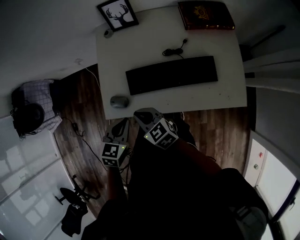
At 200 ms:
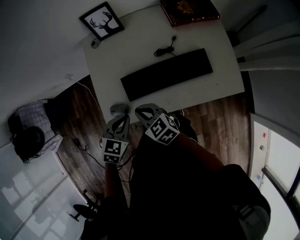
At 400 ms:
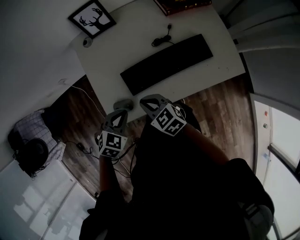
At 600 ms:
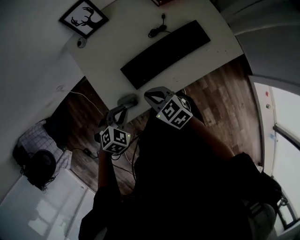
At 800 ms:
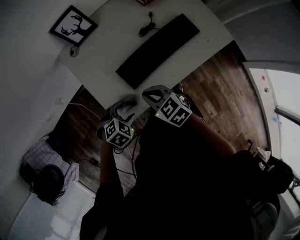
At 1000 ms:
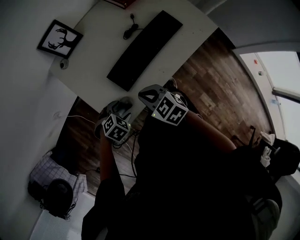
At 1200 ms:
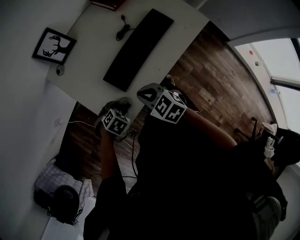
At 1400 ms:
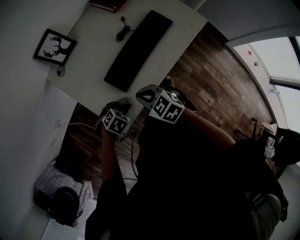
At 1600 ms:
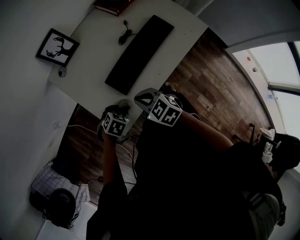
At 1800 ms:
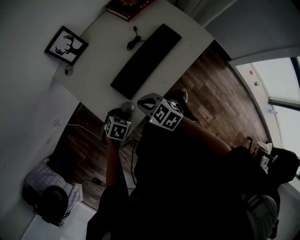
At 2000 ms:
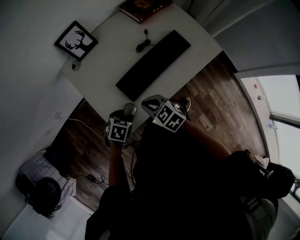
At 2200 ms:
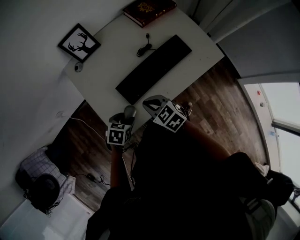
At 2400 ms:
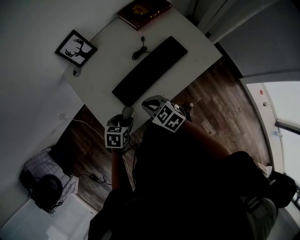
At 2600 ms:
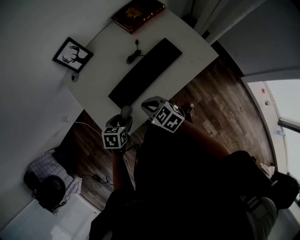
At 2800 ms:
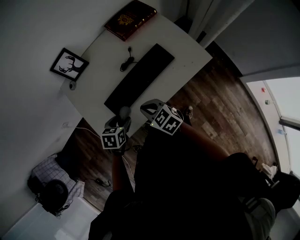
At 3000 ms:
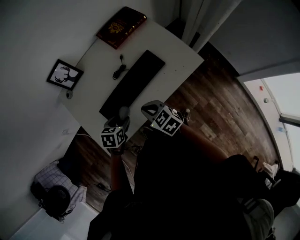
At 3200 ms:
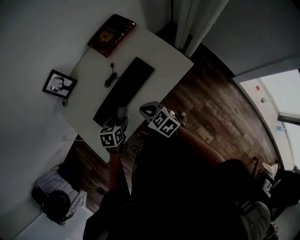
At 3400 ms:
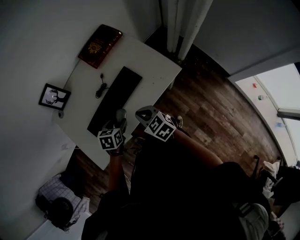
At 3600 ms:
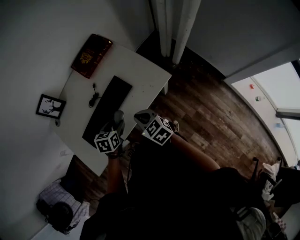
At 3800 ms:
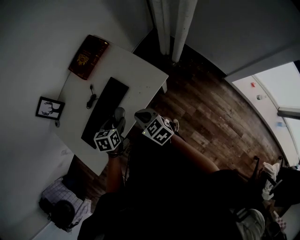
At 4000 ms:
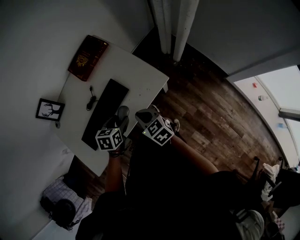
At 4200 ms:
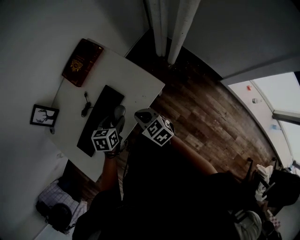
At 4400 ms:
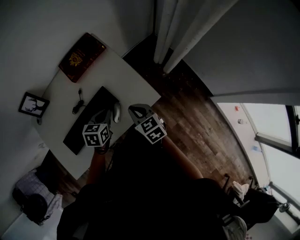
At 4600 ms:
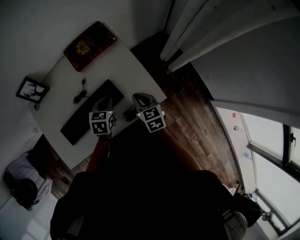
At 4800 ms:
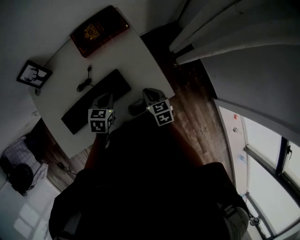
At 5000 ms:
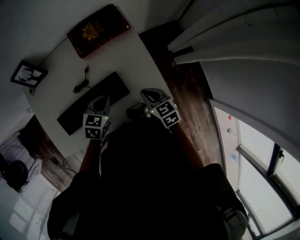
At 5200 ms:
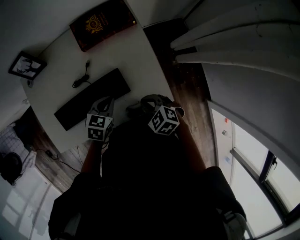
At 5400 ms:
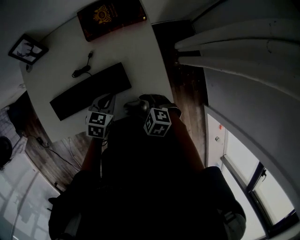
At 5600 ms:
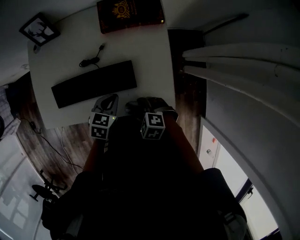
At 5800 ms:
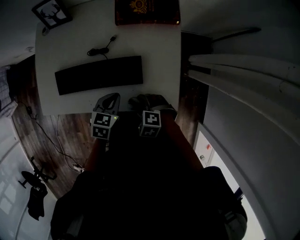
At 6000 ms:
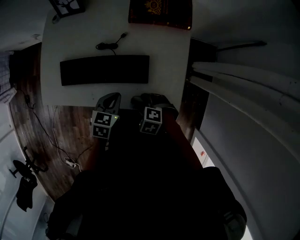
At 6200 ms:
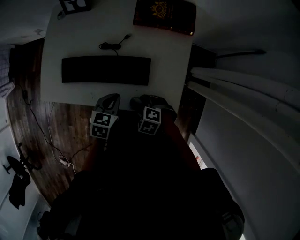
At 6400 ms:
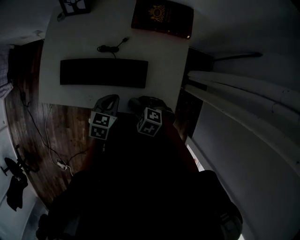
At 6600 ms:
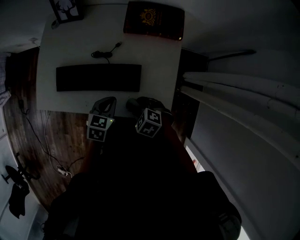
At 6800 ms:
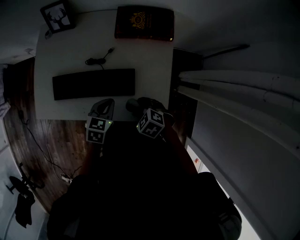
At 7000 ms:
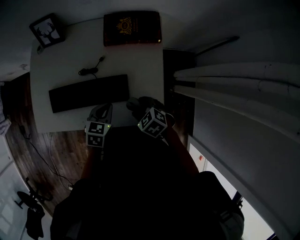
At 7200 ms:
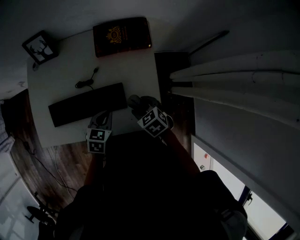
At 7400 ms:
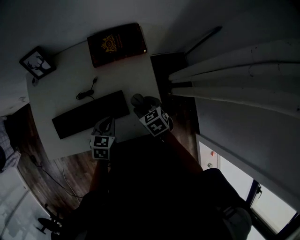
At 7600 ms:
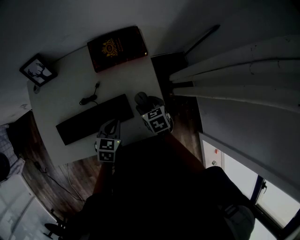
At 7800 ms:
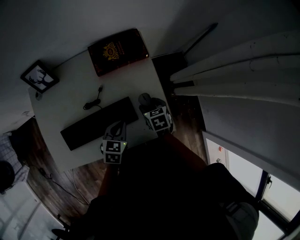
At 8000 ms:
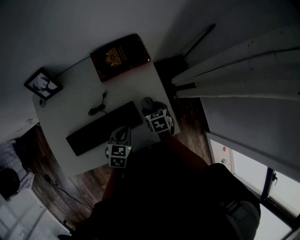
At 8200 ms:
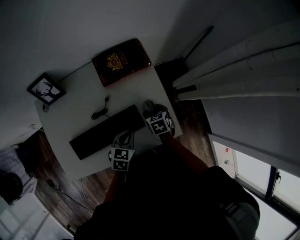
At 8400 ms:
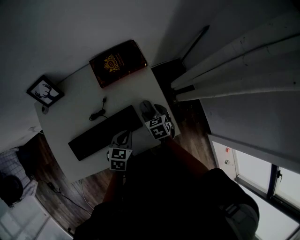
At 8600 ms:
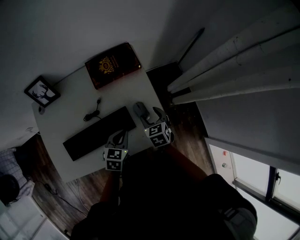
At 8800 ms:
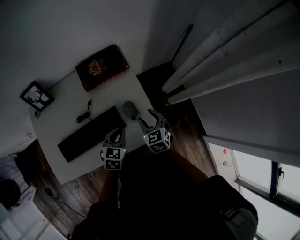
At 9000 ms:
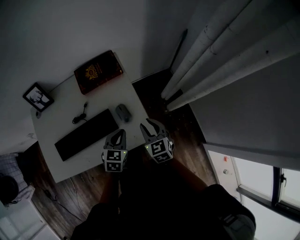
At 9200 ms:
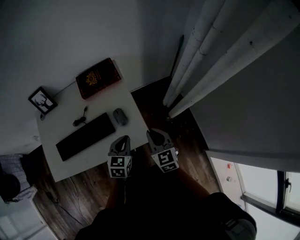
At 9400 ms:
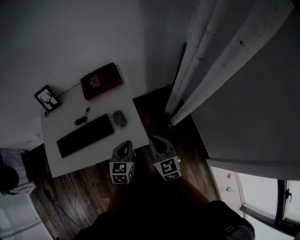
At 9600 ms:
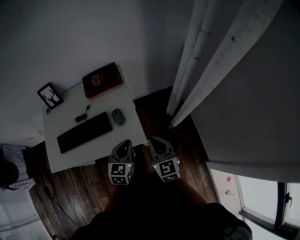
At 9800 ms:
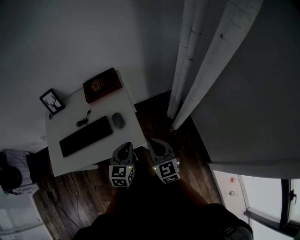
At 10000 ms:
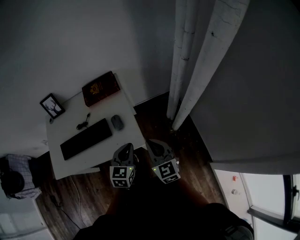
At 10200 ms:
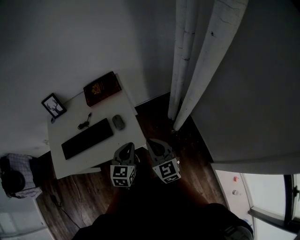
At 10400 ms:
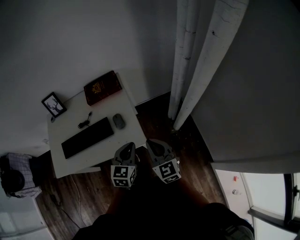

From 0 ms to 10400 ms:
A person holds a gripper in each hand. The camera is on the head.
From 0 ms to 1400 ms: The right gripper swivels about 40 degrees, while the left gripper goes approximately 15 cm downward, points its fingers approximately 30 degrees further downward, and opens.
From 1400 ms to 3000 ms: The left gripper changes place by about 20 cm, and rotates around the line of its fingers by about 40 degrees, counterclockwise from behind. Meanwhile the right gripper shifts by approximately 15 cm.
From 3000 ms to 4400 ms: The grippers both shift to the right and forward by approximately 30 cm. The left gripper closes.
From 4400 ms to 6000 ms: The left gripper moves approximately 10 cm, and swivels approximately 30 degrees. The right gripper travels downward by roughly 10 cm, tips its fingers downward by about 40 degrees, and opens.
From 6000 ms to 7400 ms: The left gripper changes place by some 10 cm, while the right gripper shifts by roughly 20 cm, and rotates around the line of its fingers by approximately 50 degrees, clockwise from behind.
From 7400 ms to 9000 ms: The right gripper heads to the right, upward and backward, covering about 15 cm, rotates roughly 30 degrees, and closes; the left gripper travels to the right by roughly 10 cm.
From 9000 ms to 10400 ms: The right gripper shifts roughly 15 cm backward, upward and to the right, swivels some 20 degrees, and closes up; the left gripper shifts about 15 cm to the right, backward and upward.

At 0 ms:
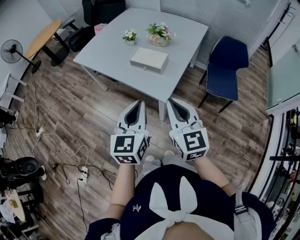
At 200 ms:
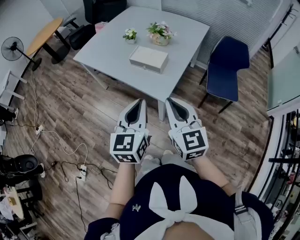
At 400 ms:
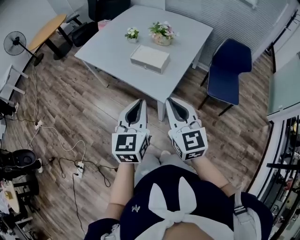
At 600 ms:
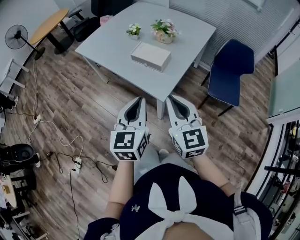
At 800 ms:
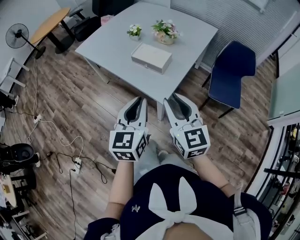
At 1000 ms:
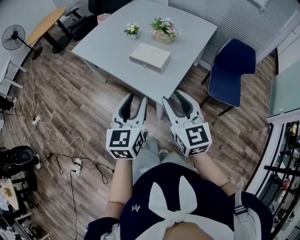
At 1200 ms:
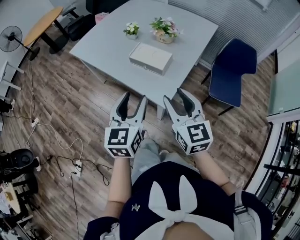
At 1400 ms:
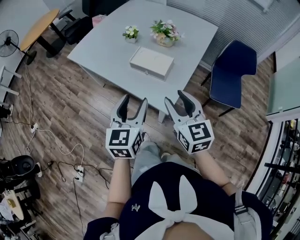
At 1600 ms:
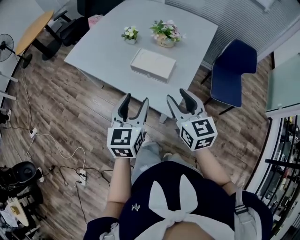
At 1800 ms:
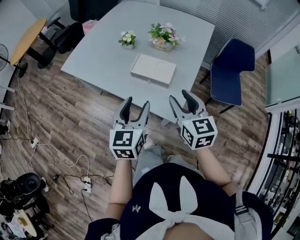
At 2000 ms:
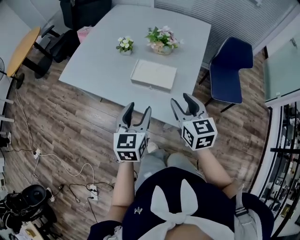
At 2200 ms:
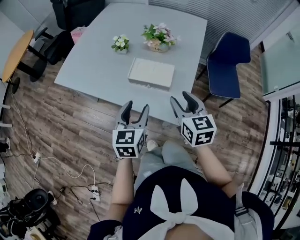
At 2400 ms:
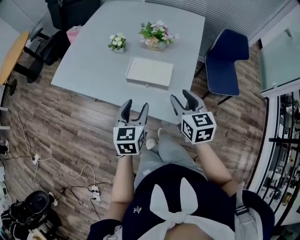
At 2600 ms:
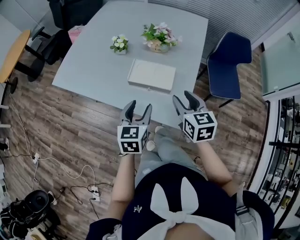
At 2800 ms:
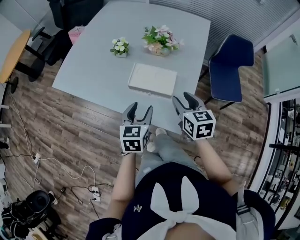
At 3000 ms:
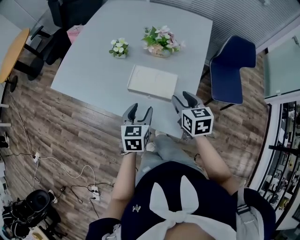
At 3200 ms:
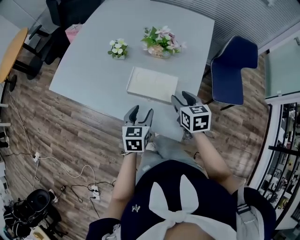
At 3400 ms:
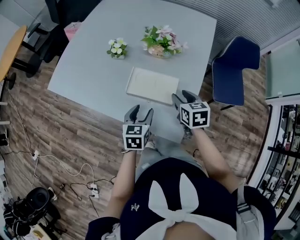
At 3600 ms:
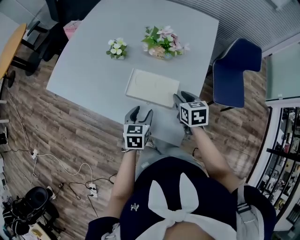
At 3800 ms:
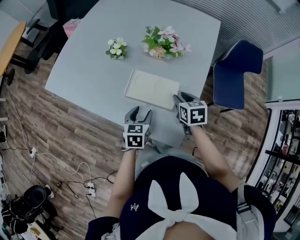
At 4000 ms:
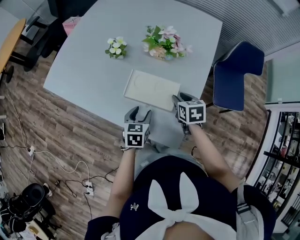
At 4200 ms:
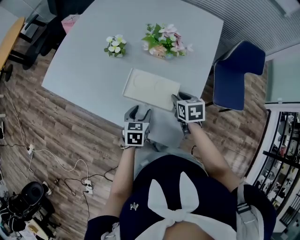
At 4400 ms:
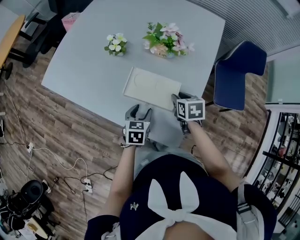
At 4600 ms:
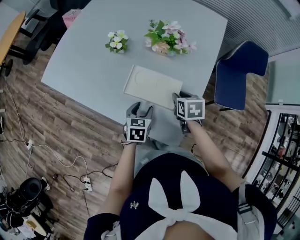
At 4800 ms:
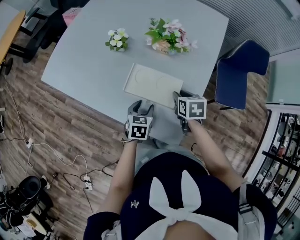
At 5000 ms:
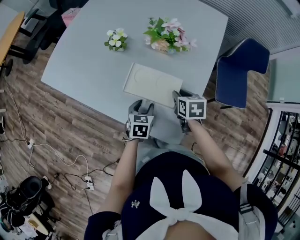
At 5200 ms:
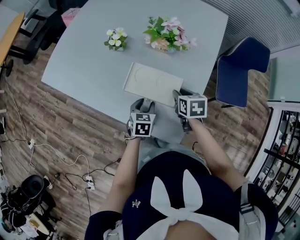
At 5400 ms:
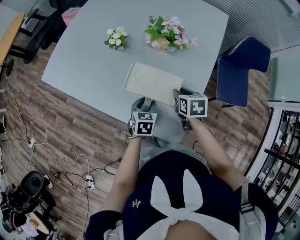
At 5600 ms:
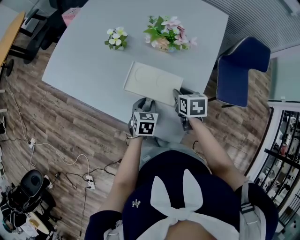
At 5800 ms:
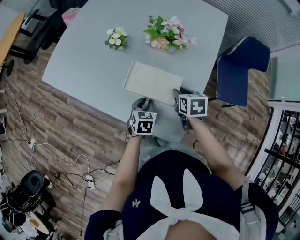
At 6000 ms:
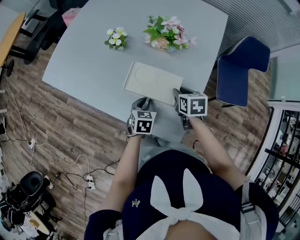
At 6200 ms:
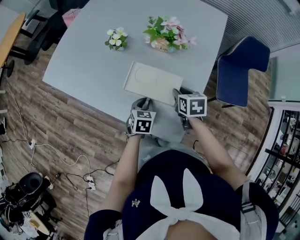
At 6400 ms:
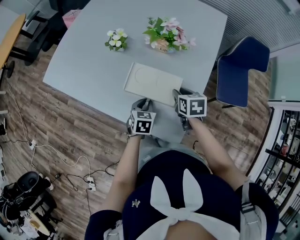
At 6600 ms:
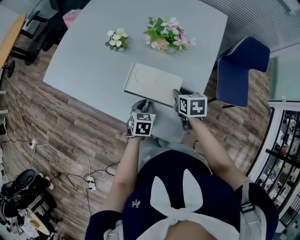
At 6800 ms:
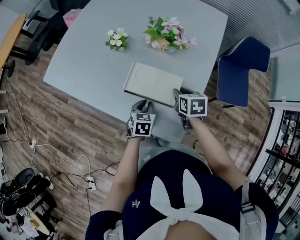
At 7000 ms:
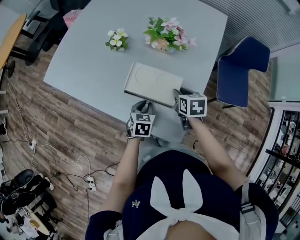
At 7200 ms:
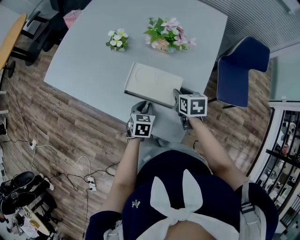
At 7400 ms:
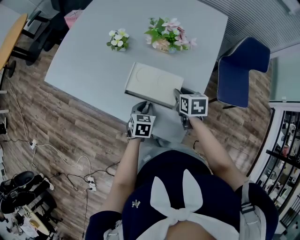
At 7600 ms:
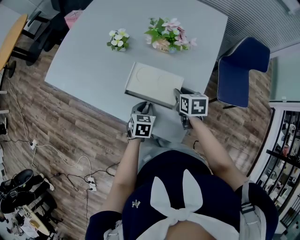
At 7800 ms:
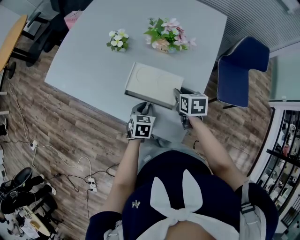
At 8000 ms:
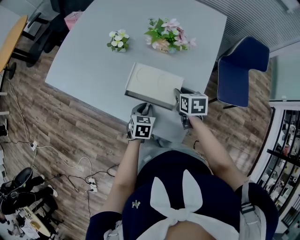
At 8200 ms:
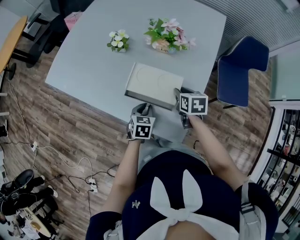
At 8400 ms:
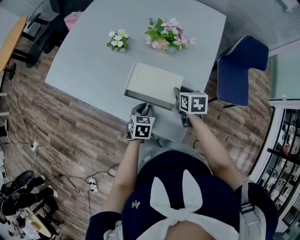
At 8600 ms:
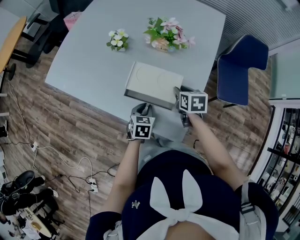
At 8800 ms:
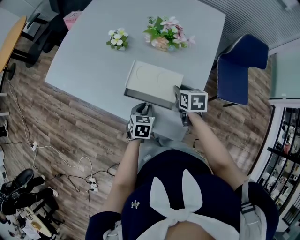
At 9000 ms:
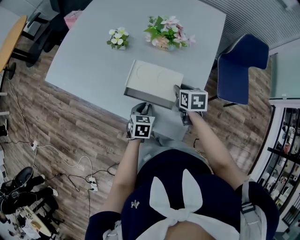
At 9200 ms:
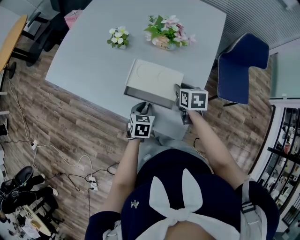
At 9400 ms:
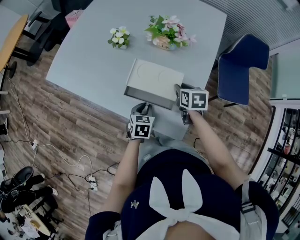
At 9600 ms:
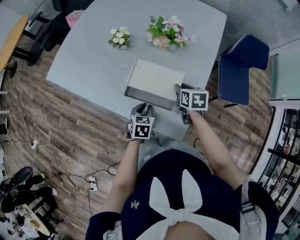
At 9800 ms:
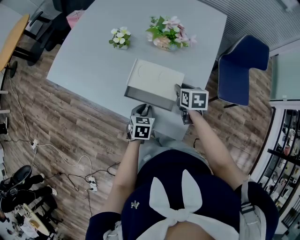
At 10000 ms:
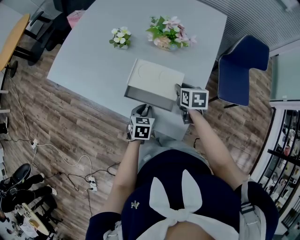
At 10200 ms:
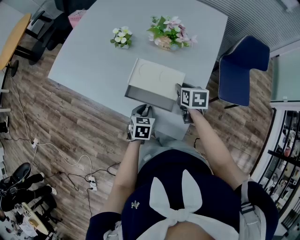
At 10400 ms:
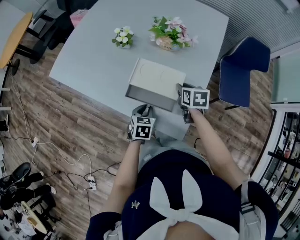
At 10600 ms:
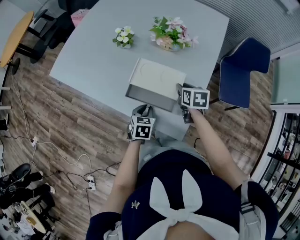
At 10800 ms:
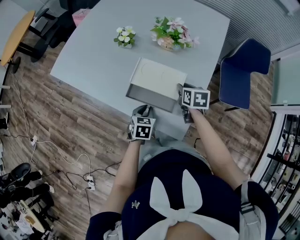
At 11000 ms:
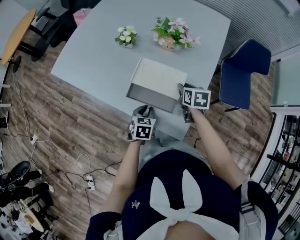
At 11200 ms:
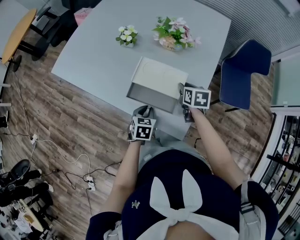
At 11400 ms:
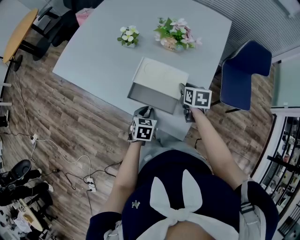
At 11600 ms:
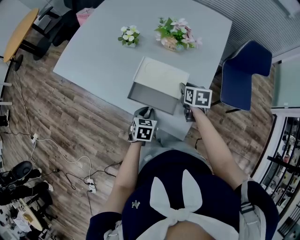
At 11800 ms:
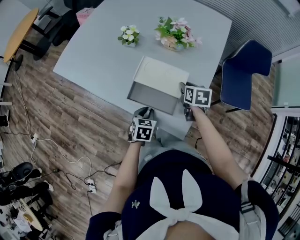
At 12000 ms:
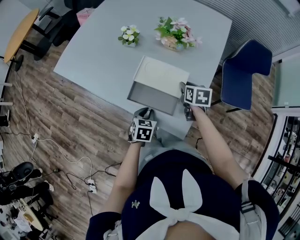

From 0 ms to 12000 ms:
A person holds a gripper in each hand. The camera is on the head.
From 0 ms to 1600 ms: The two grippers go approximately 15 cm forward. The right gripper opens up. The left gripper opens up.
From 1600 ms to 3000 ms: The two grippers go some 20 cm forward and downward. The left gripper turns by approximately 20 degrees. The right gripper swivels approximately 20 degrees.
From 3000 ms to 4400 ms: The grippers both shift downward and forward by approximately 15 cm. The right gripper turns by approximately 20 degrees.
From 4400 ms to 6000 ms: The left gripper closes up.
From 6000 ms to 9000 ms: There are only small adjustments of the grippers.
From 9000 ms to 12000 ms: The grippers stay close to where they were, moving slightly.

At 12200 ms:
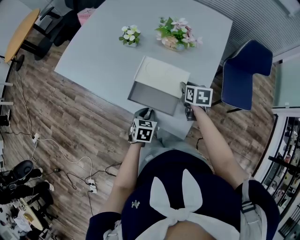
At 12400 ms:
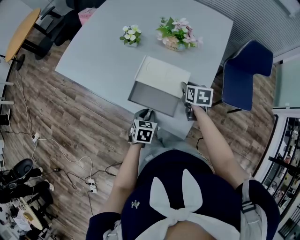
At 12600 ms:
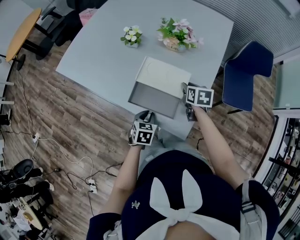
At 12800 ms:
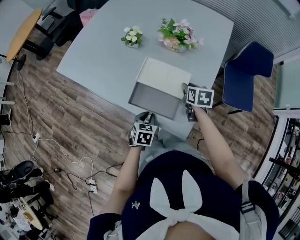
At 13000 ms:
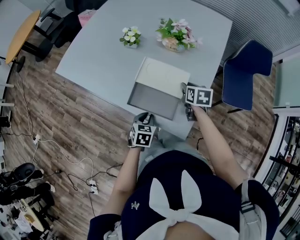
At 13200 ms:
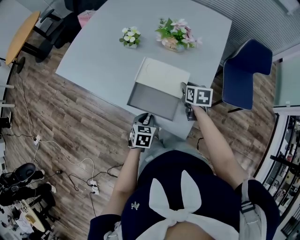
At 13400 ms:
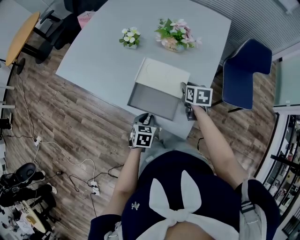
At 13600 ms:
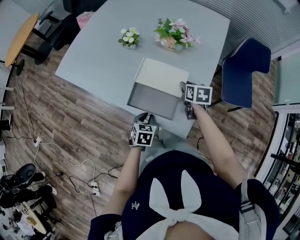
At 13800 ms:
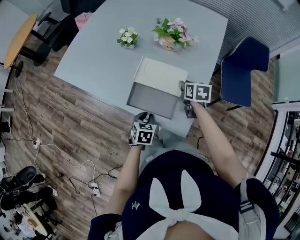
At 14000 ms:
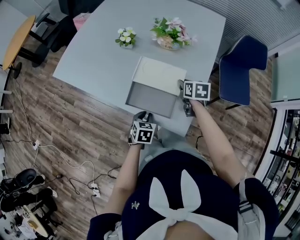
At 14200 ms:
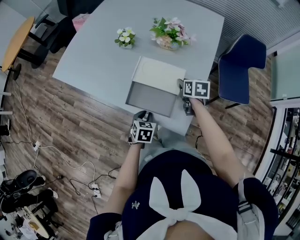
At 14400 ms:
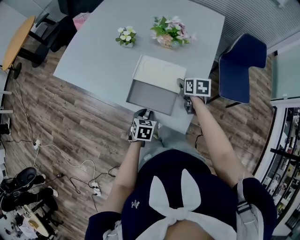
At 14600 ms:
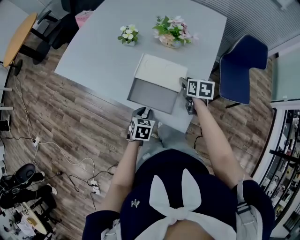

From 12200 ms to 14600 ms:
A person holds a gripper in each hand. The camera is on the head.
From 12200 ms to 14600 ms: The grippers move only a little.
